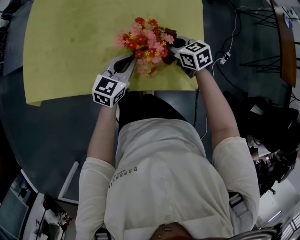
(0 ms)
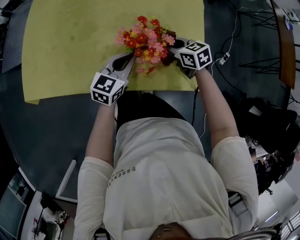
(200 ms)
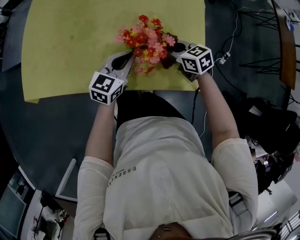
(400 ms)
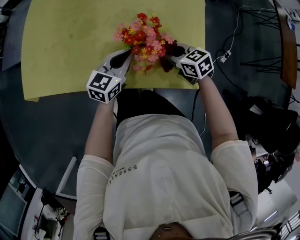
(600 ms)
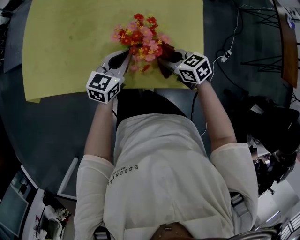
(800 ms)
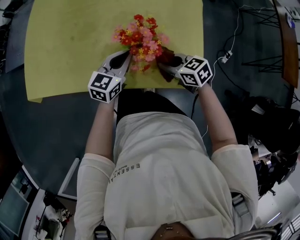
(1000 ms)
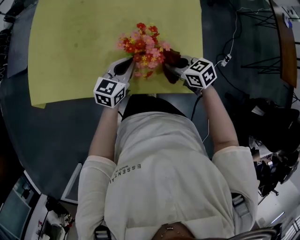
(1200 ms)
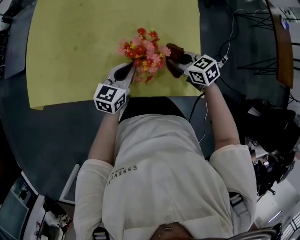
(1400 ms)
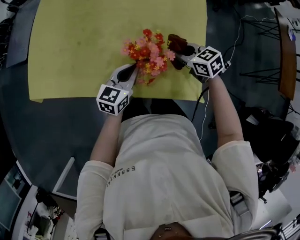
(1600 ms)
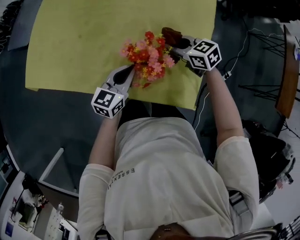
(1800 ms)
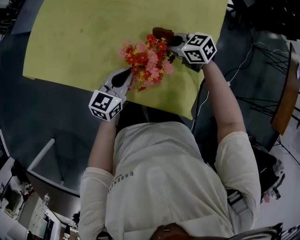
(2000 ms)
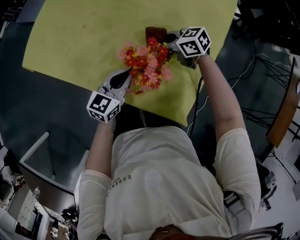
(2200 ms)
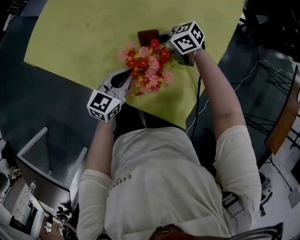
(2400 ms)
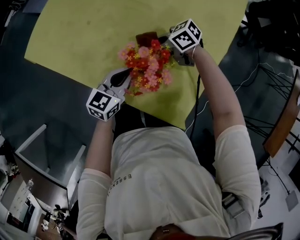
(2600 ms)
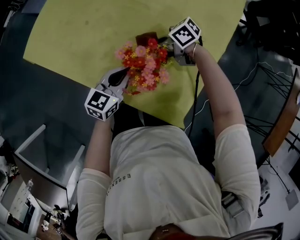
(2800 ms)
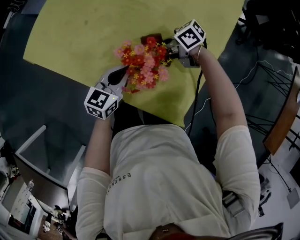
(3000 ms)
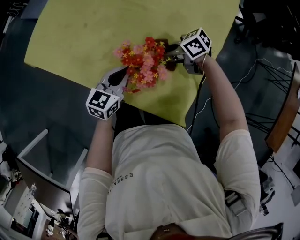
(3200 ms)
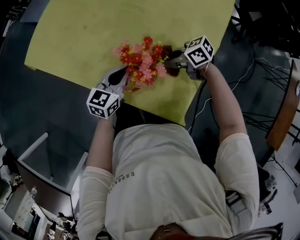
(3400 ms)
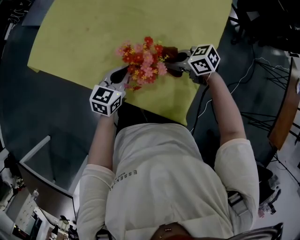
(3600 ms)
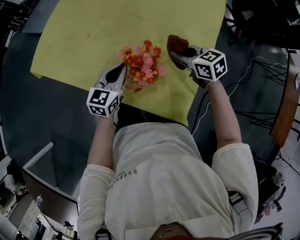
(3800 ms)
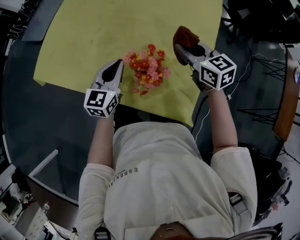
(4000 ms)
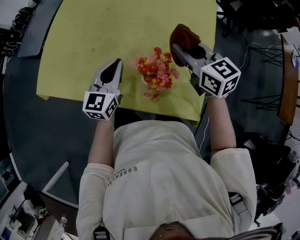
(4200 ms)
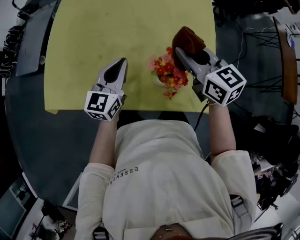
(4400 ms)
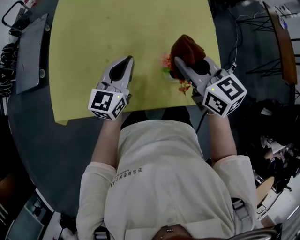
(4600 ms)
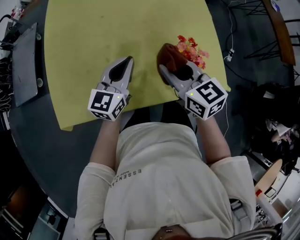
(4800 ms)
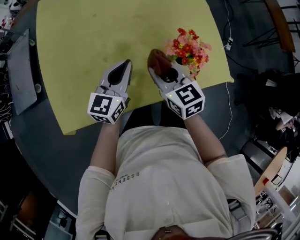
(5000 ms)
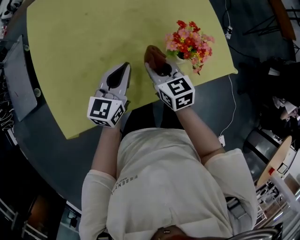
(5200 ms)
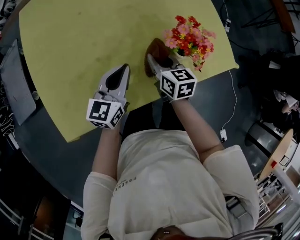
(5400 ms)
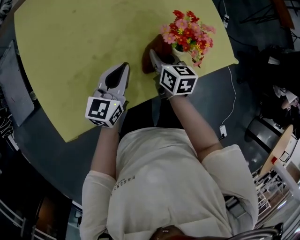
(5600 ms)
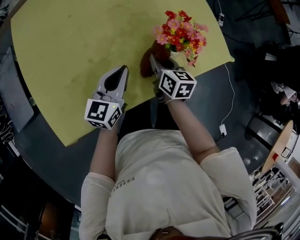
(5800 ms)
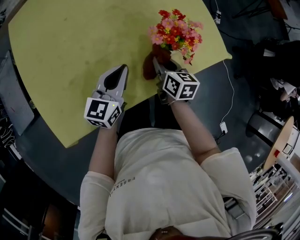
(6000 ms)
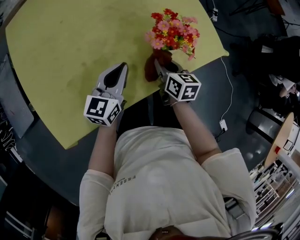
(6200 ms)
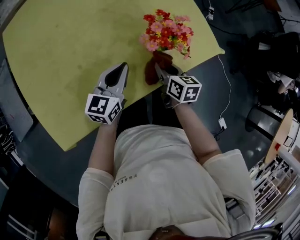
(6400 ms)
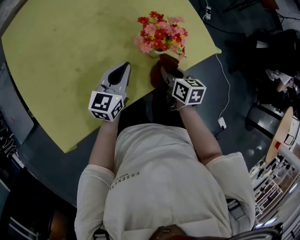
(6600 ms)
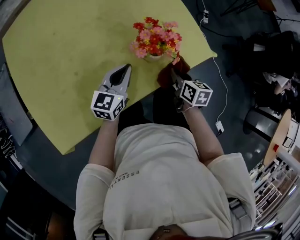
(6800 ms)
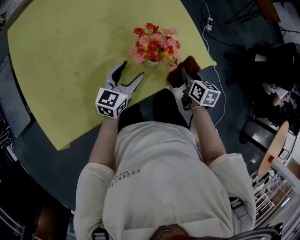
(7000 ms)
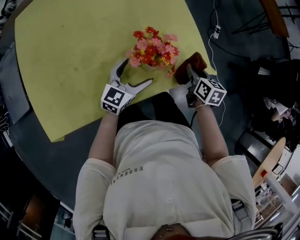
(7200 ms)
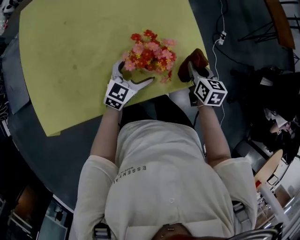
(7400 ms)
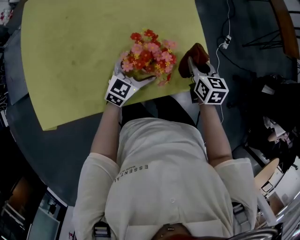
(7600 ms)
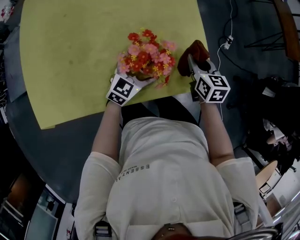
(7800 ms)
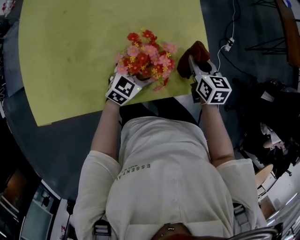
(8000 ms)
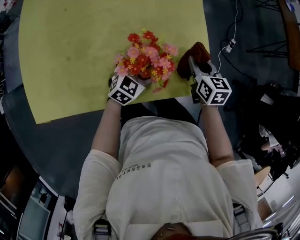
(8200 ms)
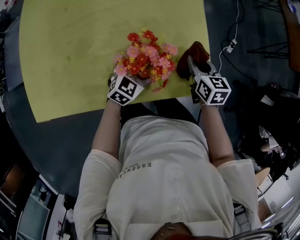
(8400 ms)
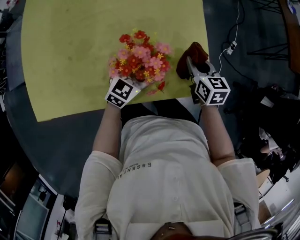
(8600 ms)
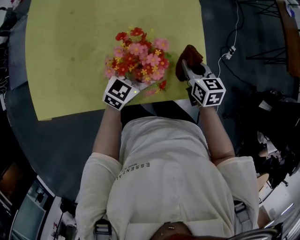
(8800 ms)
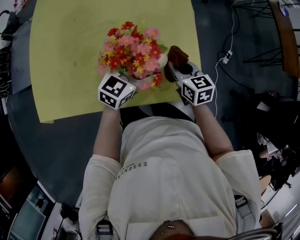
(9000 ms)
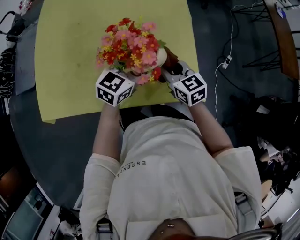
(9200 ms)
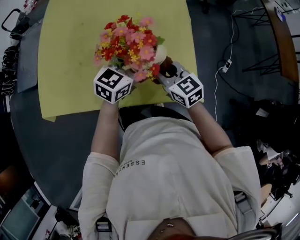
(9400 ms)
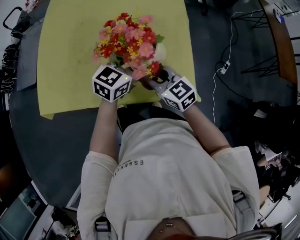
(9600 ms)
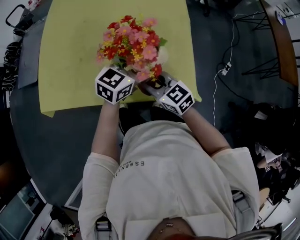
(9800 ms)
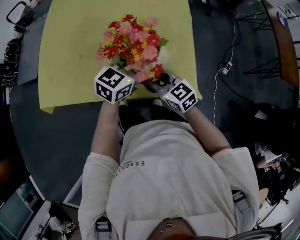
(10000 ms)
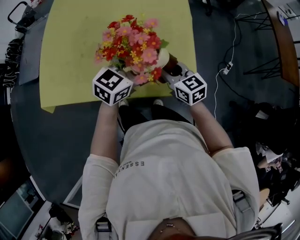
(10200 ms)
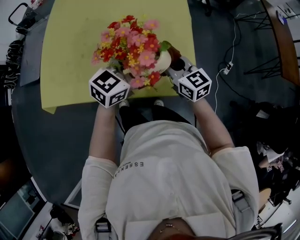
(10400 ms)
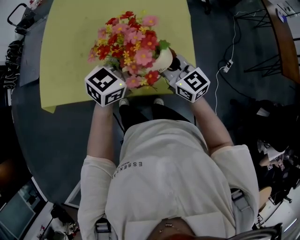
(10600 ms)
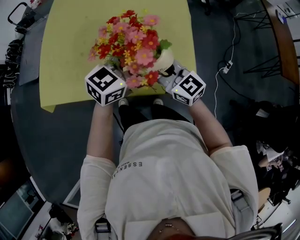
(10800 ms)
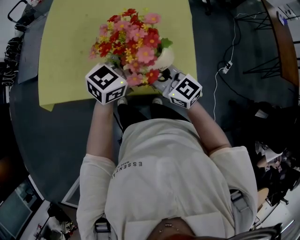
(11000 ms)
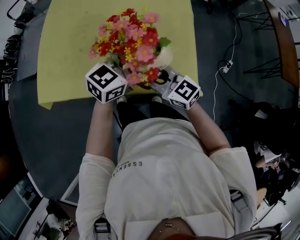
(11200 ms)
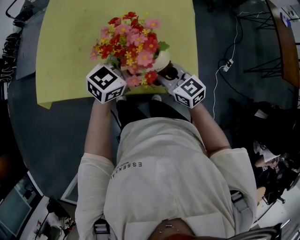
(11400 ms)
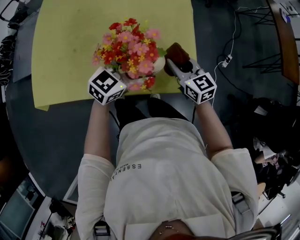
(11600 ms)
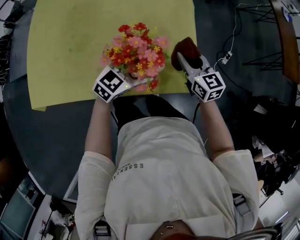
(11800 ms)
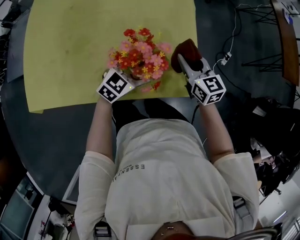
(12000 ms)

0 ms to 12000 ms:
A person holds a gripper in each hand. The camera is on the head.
0 ms to 1600 ms: The right gripper moves roughly 10 cm backward and comes back.
1600 ms to 3000 ms: The right gripper changes place by about 10 cm, and swivels some 60 degrees.
3000 ms to 4400 ms: The left gripper ends up some 20 cm from where it was. Meanwhile the right gripper moves upward, roughly 20 cm, and turns by some 80 degrees.
4400 ms to 6000 ms: The right gripper goes some 25 cm downward, and swivels some 60 degrees, while the left gripper moves downward, about 10 cm, and turns by roughly 40 degrees.
6000 ms to 7600 ms: The right gripper is displaced to the right and forward by some 25 cm, and rotates about 20 degrees. Meanwhile the left gripper heads to the right, forward and downward, covering about 20 cm, and opens.
7600 ms to 9000 ms: The right gripper heads to the left, covering roughly 5 cm, and changes its angle by about 20 degrees; the left gripper moves upward, about 10 cm.
9000 ms to 10400 ms: The left gripper travels upward and backward by approximately 10 cm; the right gripper travels upward by roughly 10 cm, and turns by some 20 degrees.
10400 ms to 12000 ms: The left gripper moves downward, some 15 cm. Meanwhile the right gripper travels to the right and downward by some 10 cm.

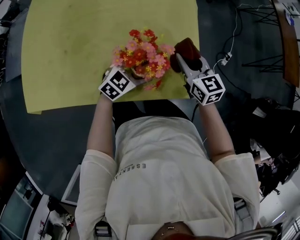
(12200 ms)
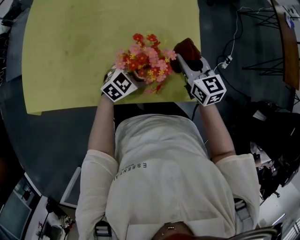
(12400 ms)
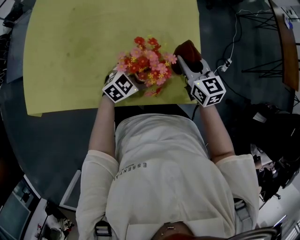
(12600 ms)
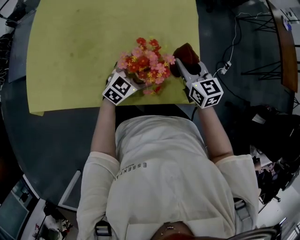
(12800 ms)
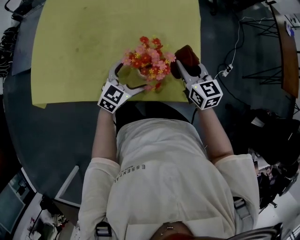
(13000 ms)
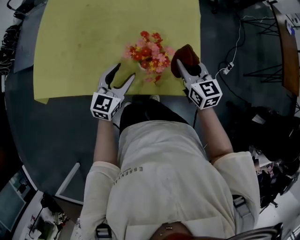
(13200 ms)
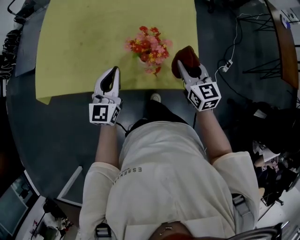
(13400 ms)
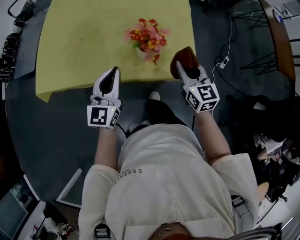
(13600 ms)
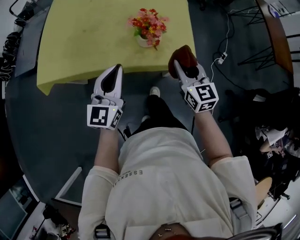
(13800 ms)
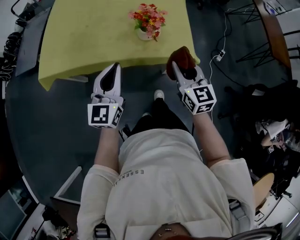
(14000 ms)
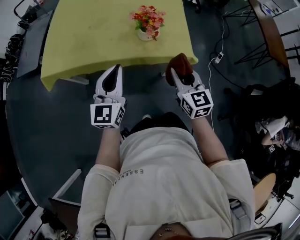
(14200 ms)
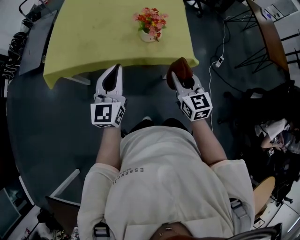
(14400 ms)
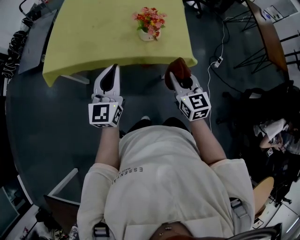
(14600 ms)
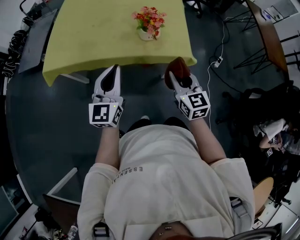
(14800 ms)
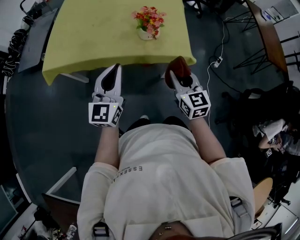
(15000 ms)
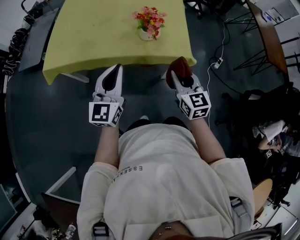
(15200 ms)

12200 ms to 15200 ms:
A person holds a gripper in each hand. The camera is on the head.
12200 ms to 13800 ms: The left gripper shifts about 30 cm upward, backward and to the left, tips its fingers upward by roughly 30 degrees, and closes; the right gripper goes about 20 cm backward and upward.
13800 ms to 15200 ms: Both grippers travel together backward, approximately 10 cm.

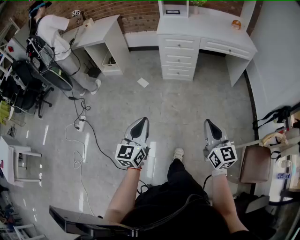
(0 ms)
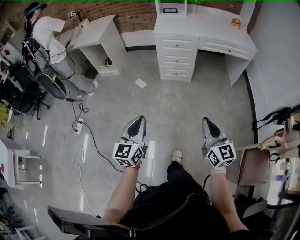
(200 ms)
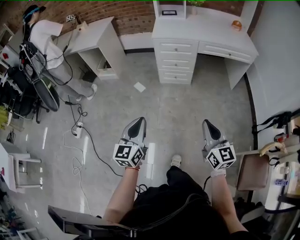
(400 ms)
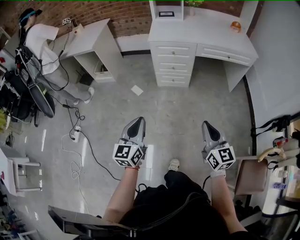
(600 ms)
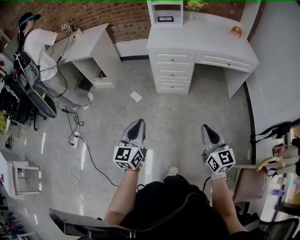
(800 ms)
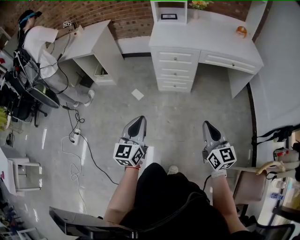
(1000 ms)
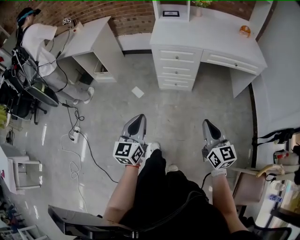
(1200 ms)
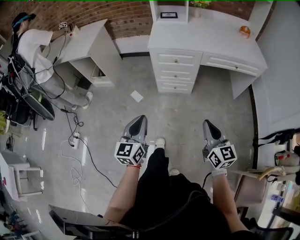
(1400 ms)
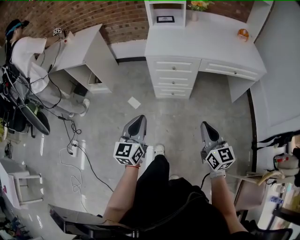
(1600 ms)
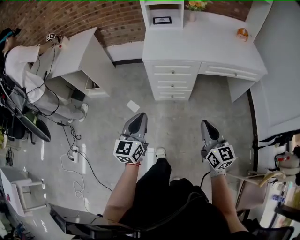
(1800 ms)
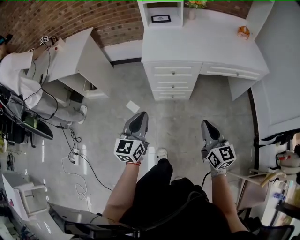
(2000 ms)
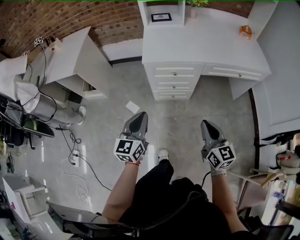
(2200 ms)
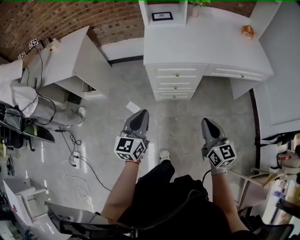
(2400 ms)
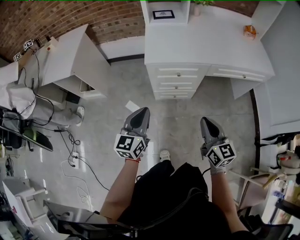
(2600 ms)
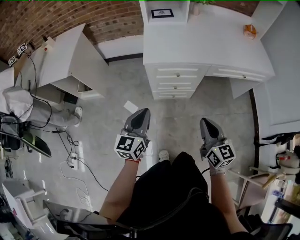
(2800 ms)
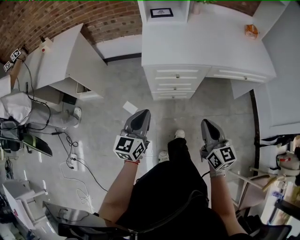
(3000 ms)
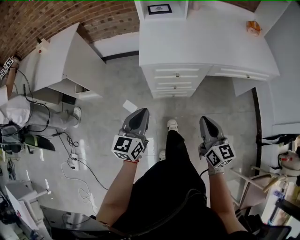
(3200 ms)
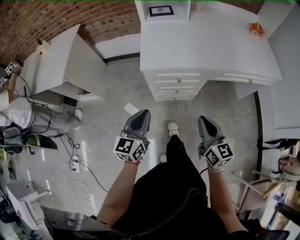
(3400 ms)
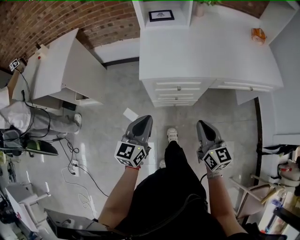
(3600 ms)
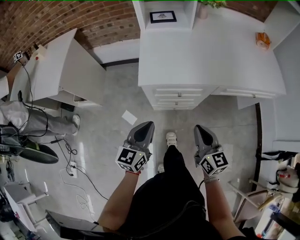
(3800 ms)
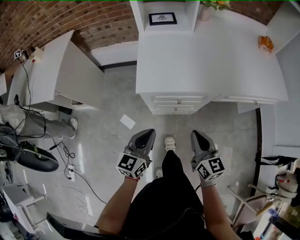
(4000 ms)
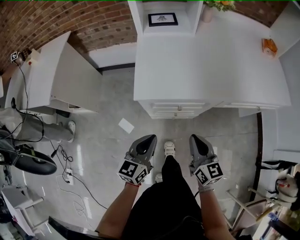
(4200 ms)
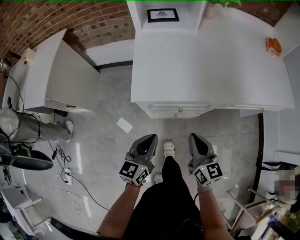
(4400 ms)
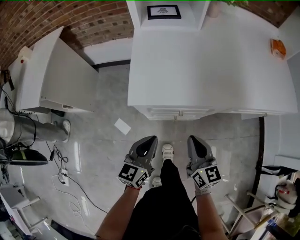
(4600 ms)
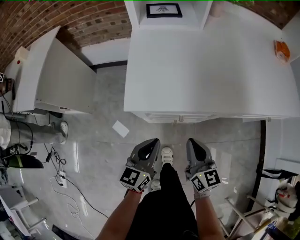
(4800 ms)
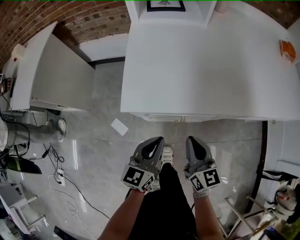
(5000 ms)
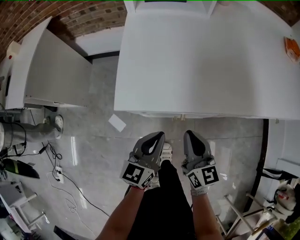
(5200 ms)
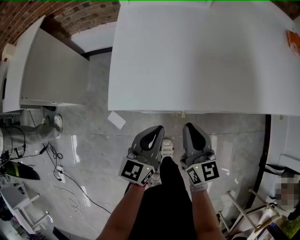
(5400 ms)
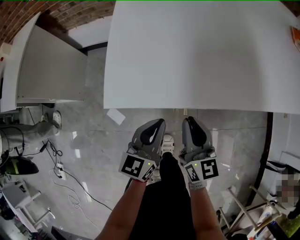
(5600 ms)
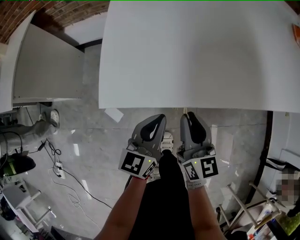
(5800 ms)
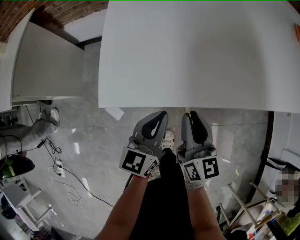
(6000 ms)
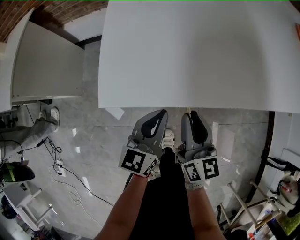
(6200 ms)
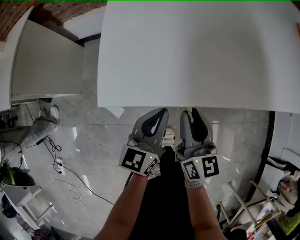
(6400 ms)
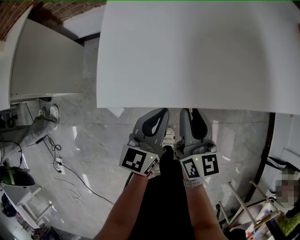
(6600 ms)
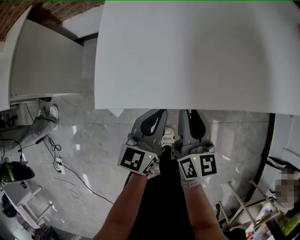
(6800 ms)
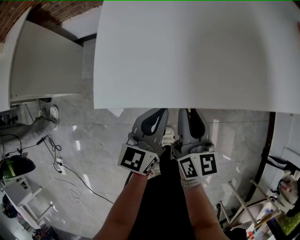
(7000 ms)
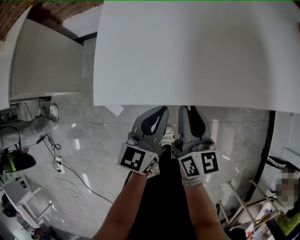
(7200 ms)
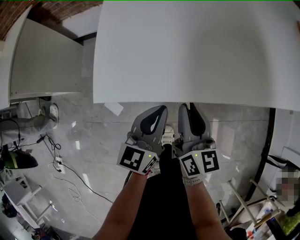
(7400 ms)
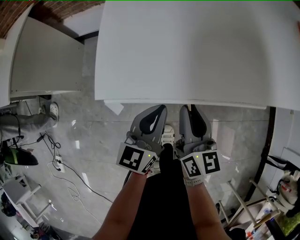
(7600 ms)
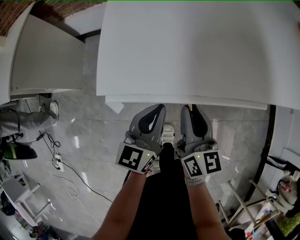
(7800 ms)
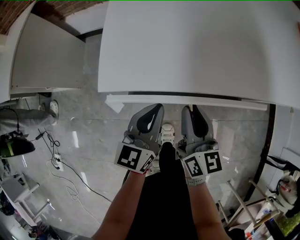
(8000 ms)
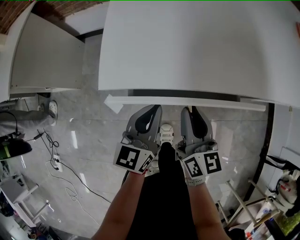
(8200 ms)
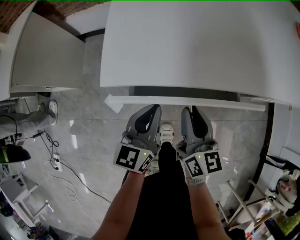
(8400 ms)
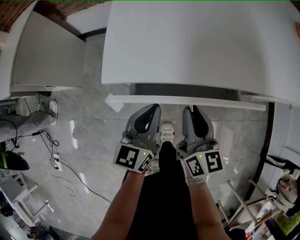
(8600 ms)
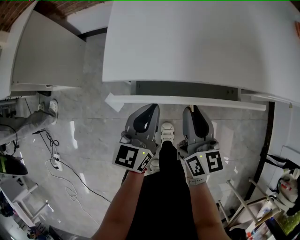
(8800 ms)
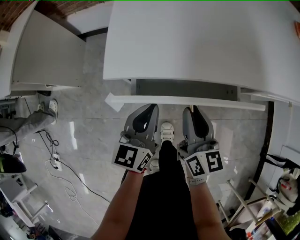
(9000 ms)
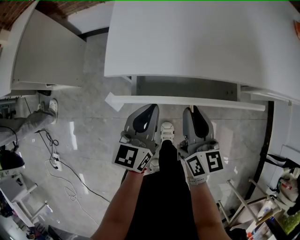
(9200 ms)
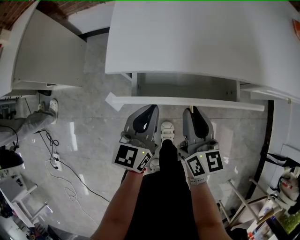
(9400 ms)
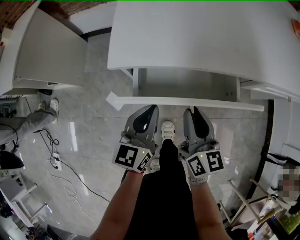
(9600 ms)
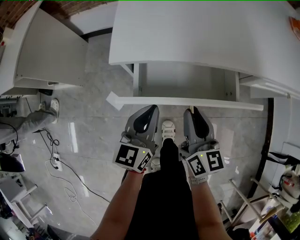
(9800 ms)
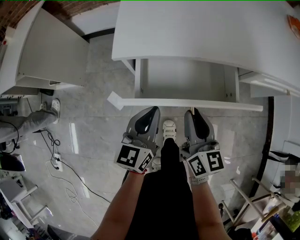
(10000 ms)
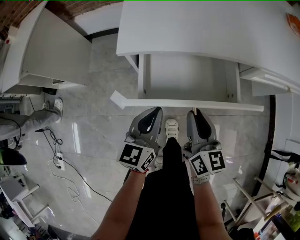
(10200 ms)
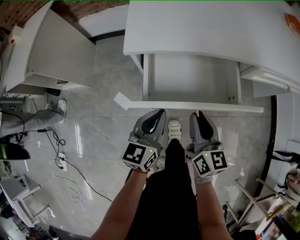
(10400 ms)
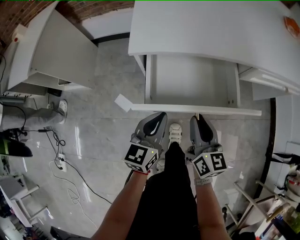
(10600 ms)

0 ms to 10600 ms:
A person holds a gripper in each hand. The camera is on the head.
0 ms to 1600 ms: The two grippers go about 35 cm forward.
1600 ms to 3000 ms: The two grippers go some 20 cm forward.
3000 ms to 4600 ms: The grippers both shift forward and downward by approximately 25 cm.
4600 ms to 6000 ms: The grippers both shift forward and downward by about 10 cm.
6000 ms to 9000 ms: The grippers stay close to where they were, moving slightly.
9000 ms to 10600 ms: The two grippers go approximately 10 cm backward.
